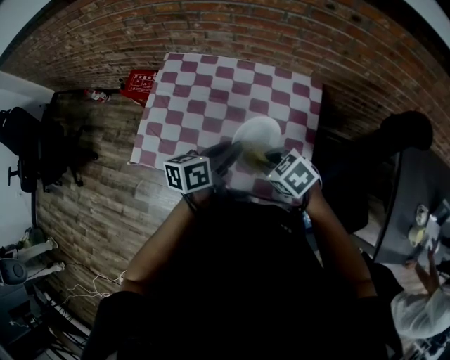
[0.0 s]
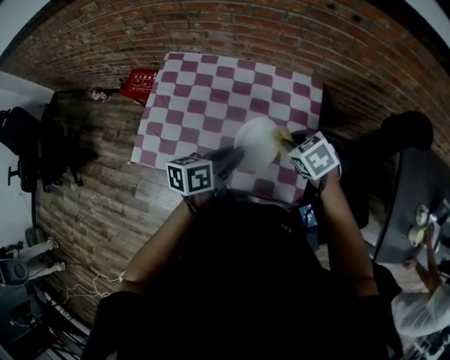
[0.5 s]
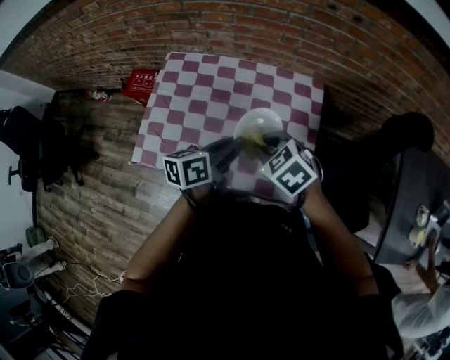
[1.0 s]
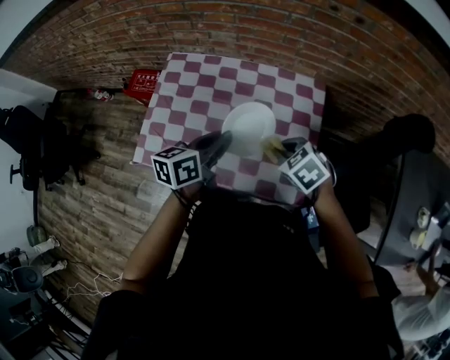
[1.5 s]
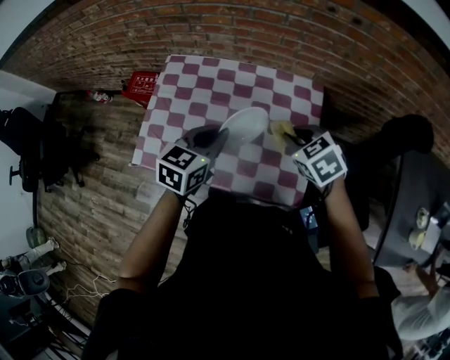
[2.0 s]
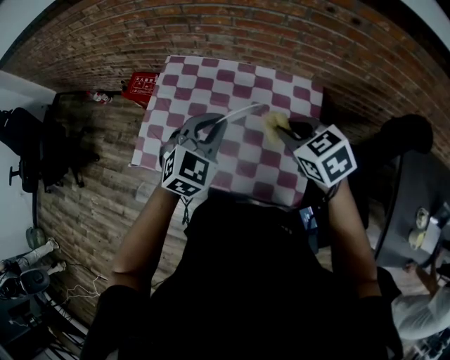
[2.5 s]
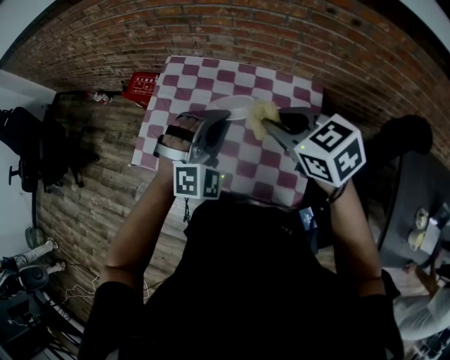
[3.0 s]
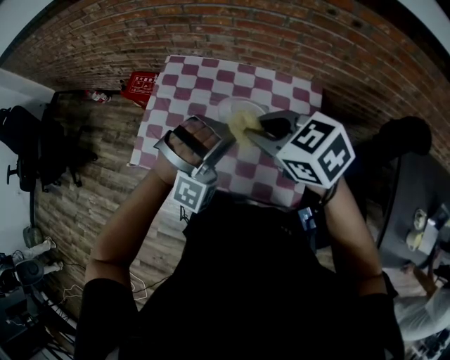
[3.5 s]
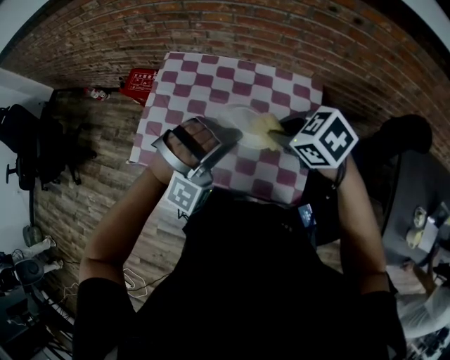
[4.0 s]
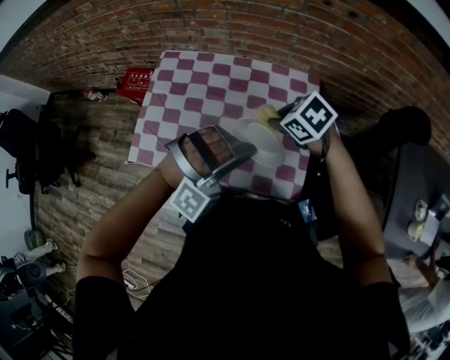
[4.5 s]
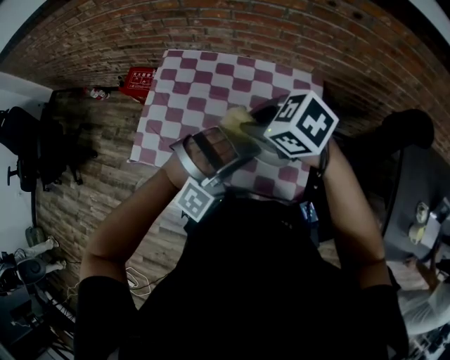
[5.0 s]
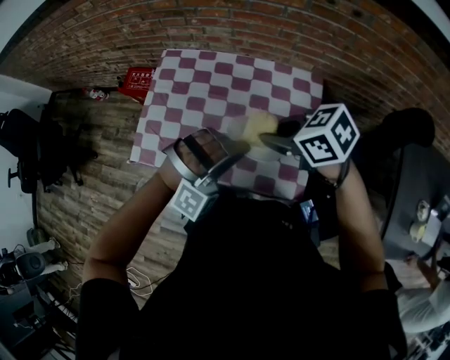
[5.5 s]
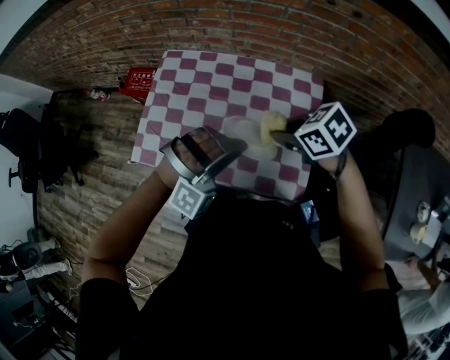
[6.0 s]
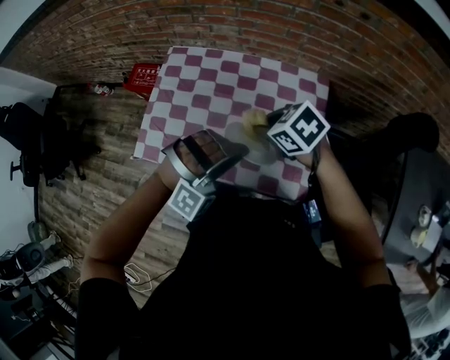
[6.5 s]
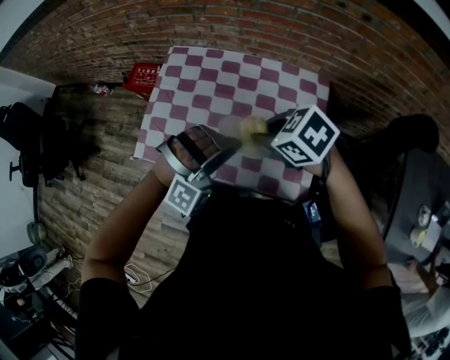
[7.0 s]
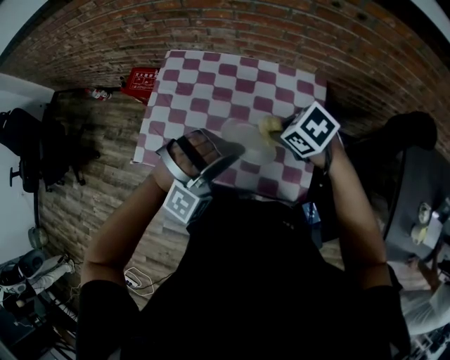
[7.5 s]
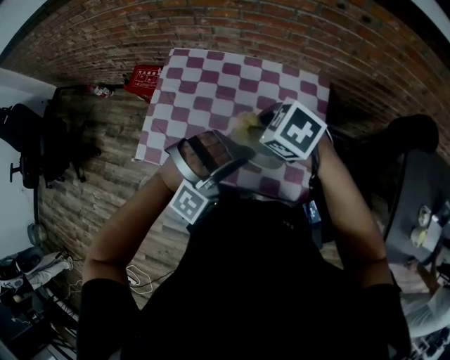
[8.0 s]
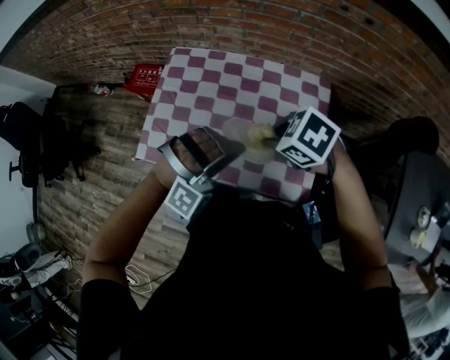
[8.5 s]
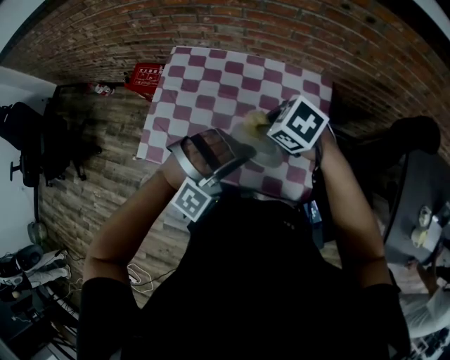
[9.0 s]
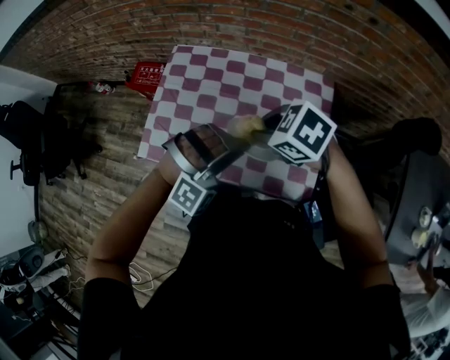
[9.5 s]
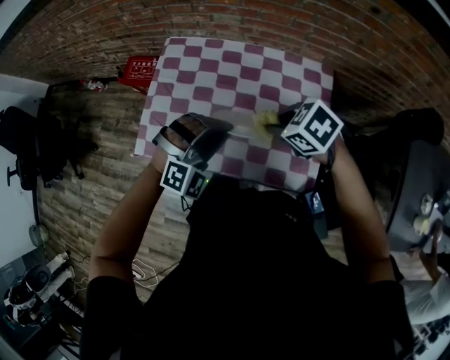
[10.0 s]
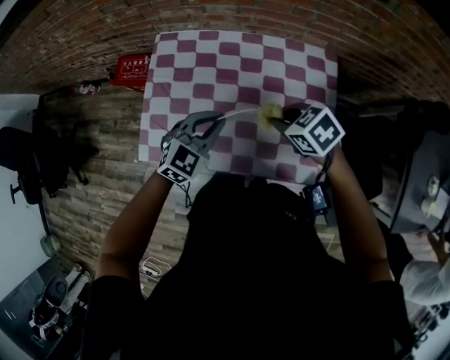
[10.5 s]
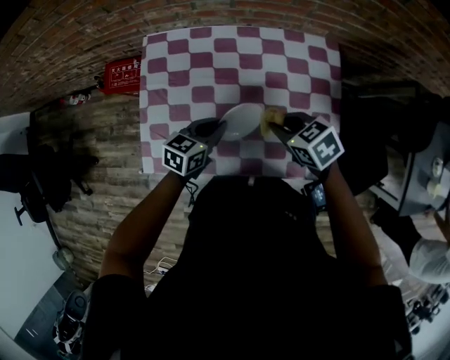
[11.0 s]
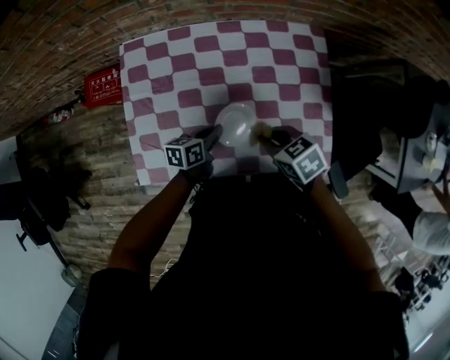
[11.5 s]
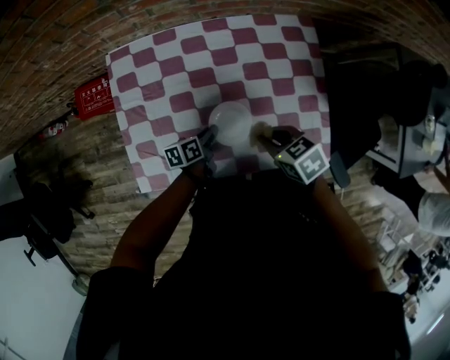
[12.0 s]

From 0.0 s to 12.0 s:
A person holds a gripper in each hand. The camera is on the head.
From 0.0 s to 2.0 s: The right gripper moves left and right over roughly 10 cm, changing direction 2 times. Meanwhile the left gripper changes place by roughly 5 cm, and changes its angle by approximately 40 degrees.
From 2.0 s to 4.0 s: The right gripper travels upward and to the left by about 10 cm. The left gripper moves approximately 5 cm, and rotates around the line of its fingers by about 100 degrees, clockwise from behind.
From 4.0 s to 6.0 s: The right gripper goes to the left and returns, roughly 5 cm each way.
From 6.0 s to 8.0 s: The right gripper swings left and right, roughly 5 cm each way, with 2 reversals, and swivels about 20 degrees.
From 8.0 s to 10.0 s: The left gripper moves about 10 cm, and rotates about 20 degrees. Meanwhile the right gripper heads downward, covering roughly 5 cm.
From 10.0 s to 12.0 s: The left gripper travels downward by some 30 cm, and rolls counterclockwise, seen from behind, by about 120 degrees. The right gripper goes about 10 cm downward, and turns by some 40 degrees.

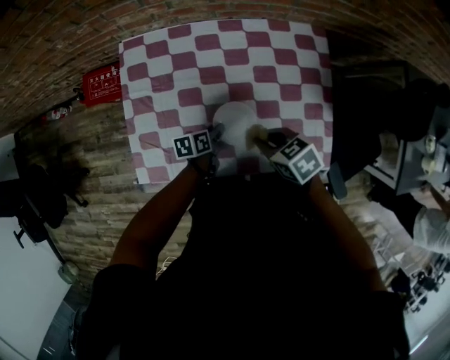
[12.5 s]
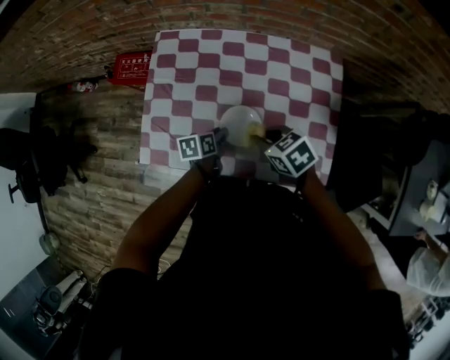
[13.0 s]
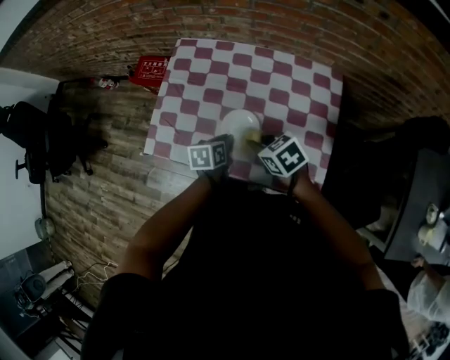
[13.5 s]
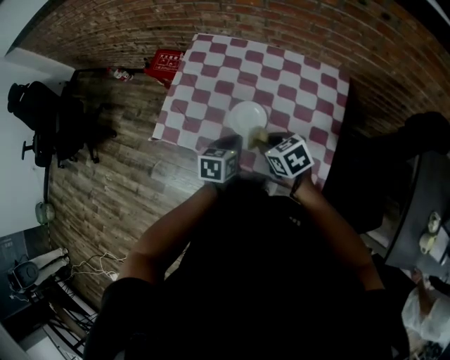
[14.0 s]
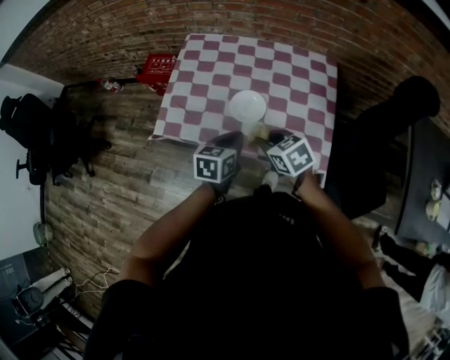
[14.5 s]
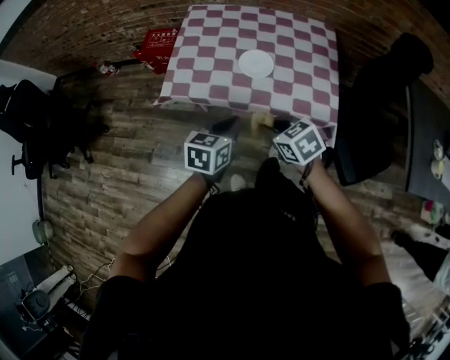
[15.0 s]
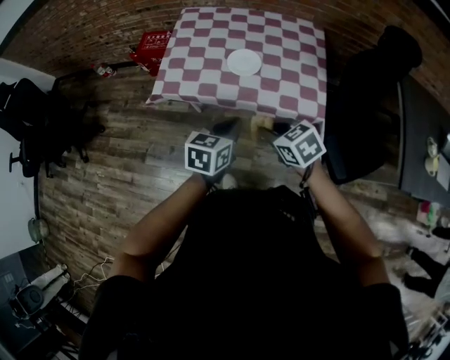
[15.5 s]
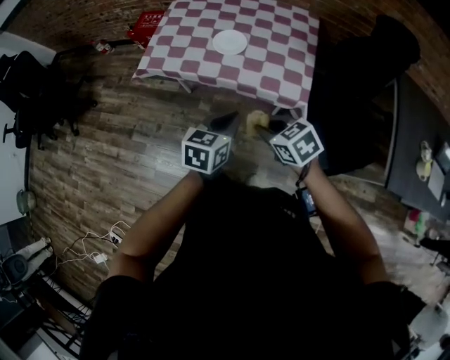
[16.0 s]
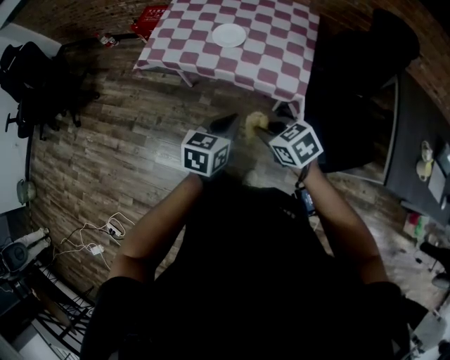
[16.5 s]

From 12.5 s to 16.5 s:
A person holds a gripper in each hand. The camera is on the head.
From 12.5 s to 14.5 s: The left gripper moves upward, some 20 cm, and changes its angle by some 40 degrees; the right gripper shifts by approximately 15 cm.
From 14.5 s to 16.5 s: Both grippers move backward, roughly 30 cm.

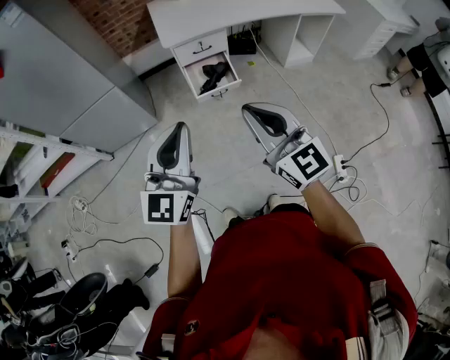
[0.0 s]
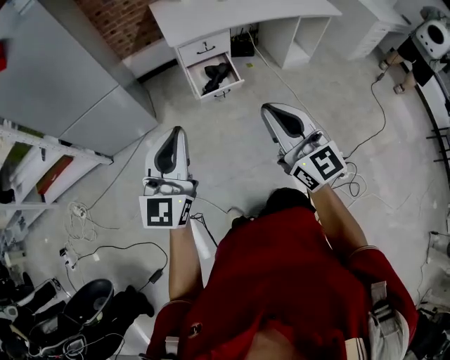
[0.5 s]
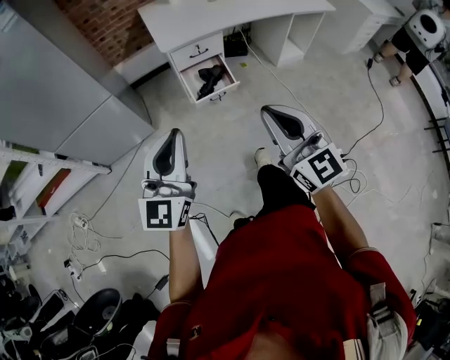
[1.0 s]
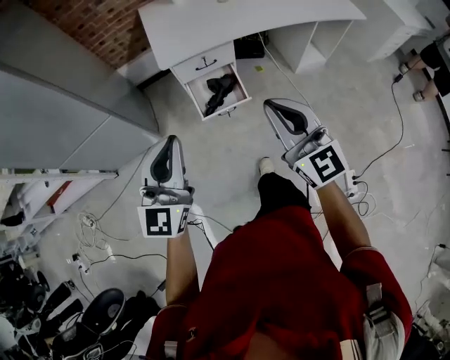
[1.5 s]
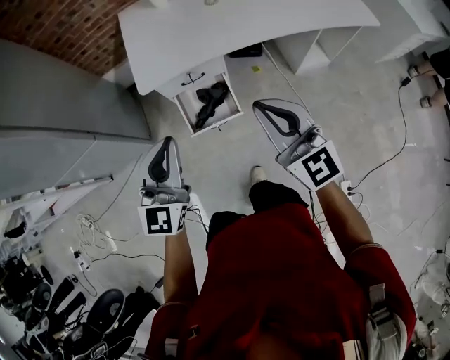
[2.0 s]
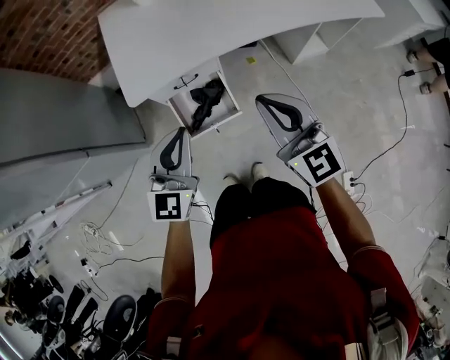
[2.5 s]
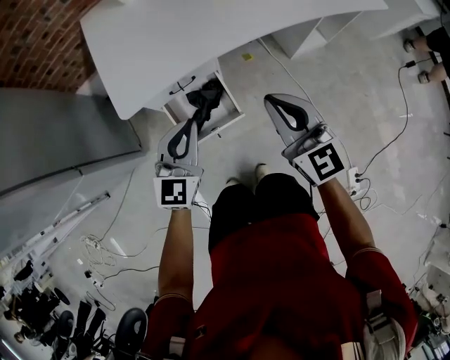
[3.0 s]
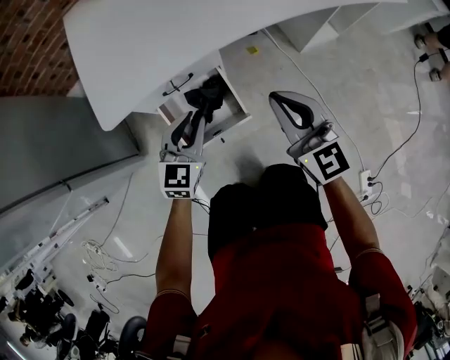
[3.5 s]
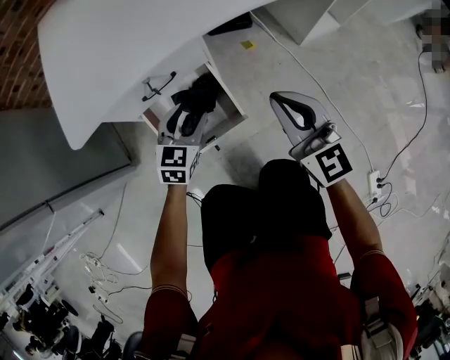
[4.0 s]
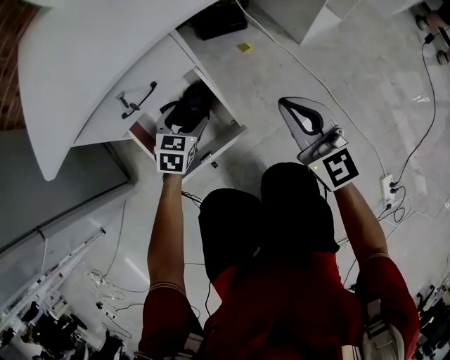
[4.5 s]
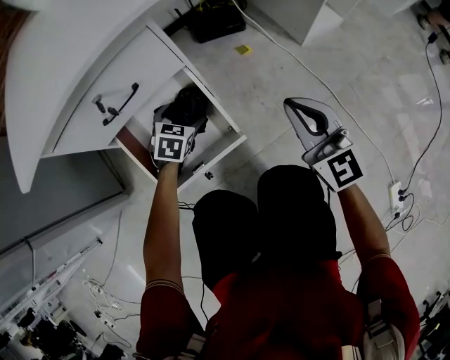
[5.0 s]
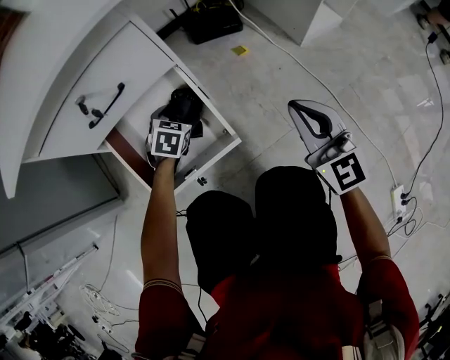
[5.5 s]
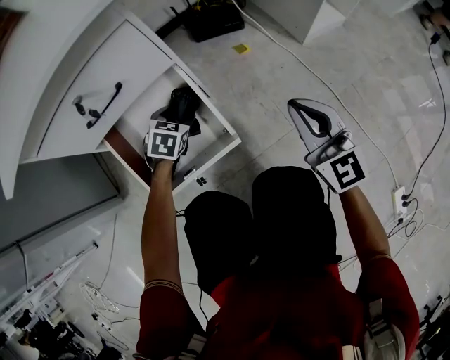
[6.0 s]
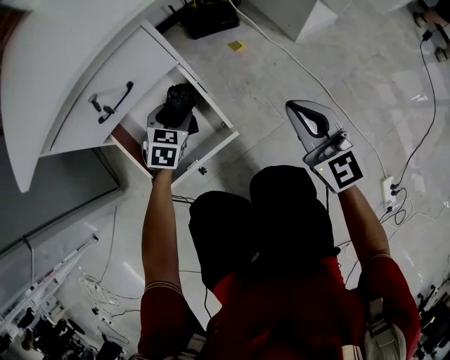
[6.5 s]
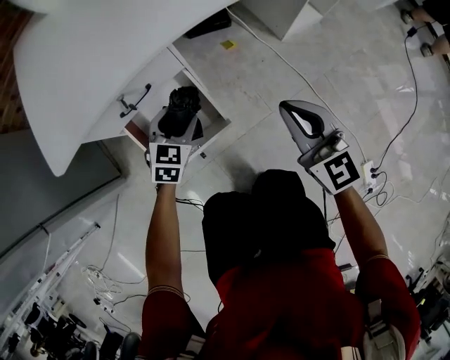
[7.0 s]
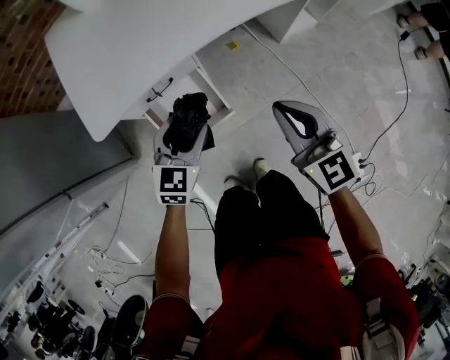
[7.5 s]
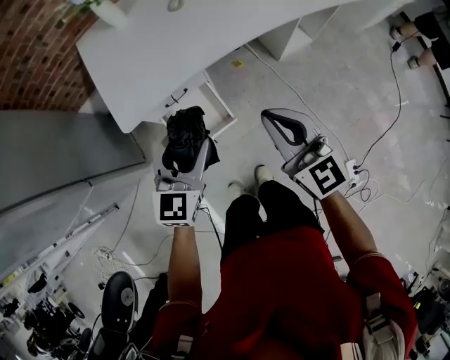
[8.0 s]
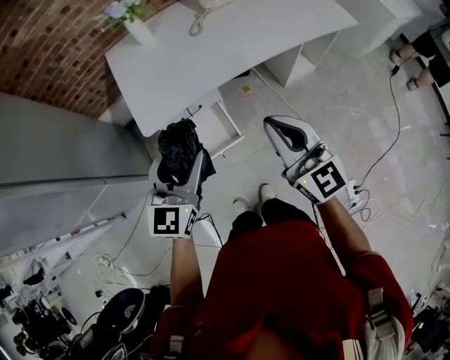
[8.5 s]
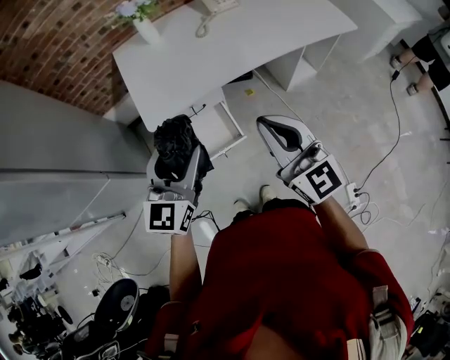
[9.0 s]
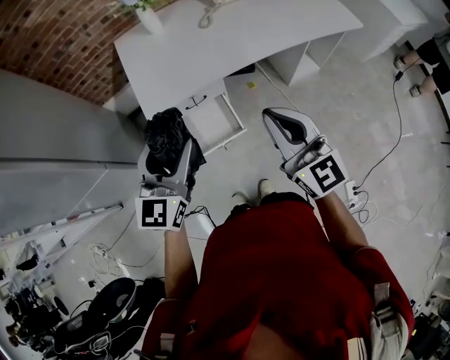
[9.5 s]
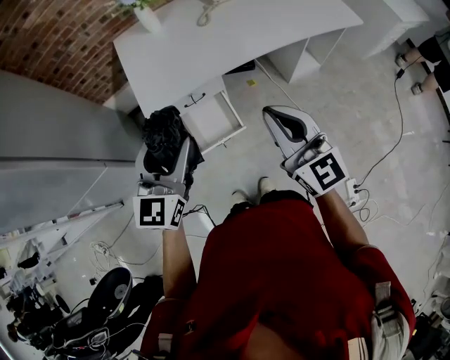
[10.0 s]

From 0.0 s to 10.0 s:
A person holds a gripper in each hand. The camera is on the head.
From 0.0 s to 2.0 s: The grippers both shift forward by about 35 cm.
From 2.0 s to 4.0 s: Both grippers move downward and forward, approximately 50 cm. The left gripper points its fingers approximately 30 degrees further downward, and opens its fingers.
From 4.0 s to 6.0 s: The right gripper heads downward and to the right, covering some 20 cm, while the left gripper goes approximately 25 cm downward, swivels some 20 degrees, and opens, then closes again.
From 6.0 s to 8.0 s: Both grippers move upward, some 60 cm. The left gripper tips its fingers upward by approximately 40 degrees.
From 8.0 s to 10.0 s: The right gripper heads upward and backward, covering some 10 cm, while the left gripper goes about 15 cm upward, backward and to the left.
